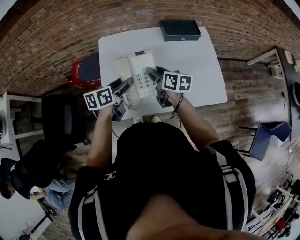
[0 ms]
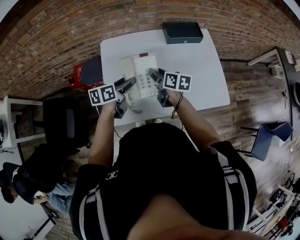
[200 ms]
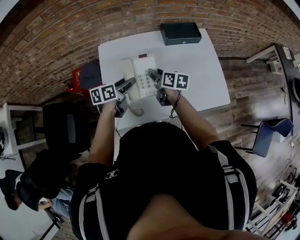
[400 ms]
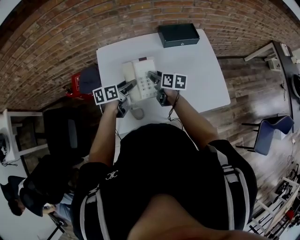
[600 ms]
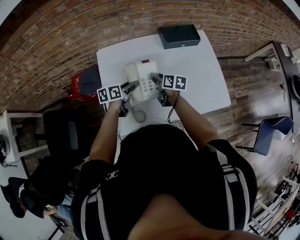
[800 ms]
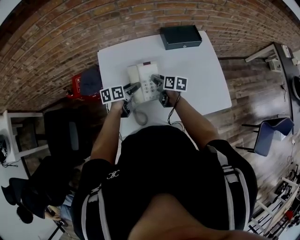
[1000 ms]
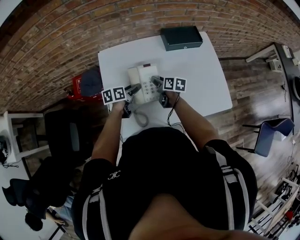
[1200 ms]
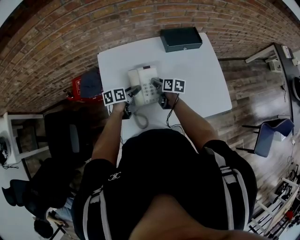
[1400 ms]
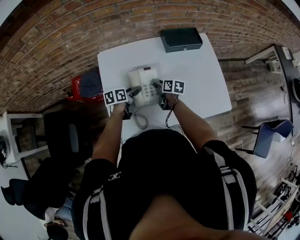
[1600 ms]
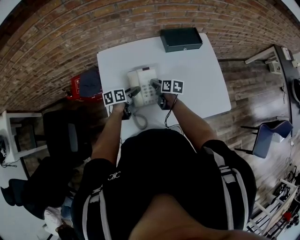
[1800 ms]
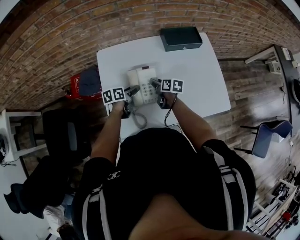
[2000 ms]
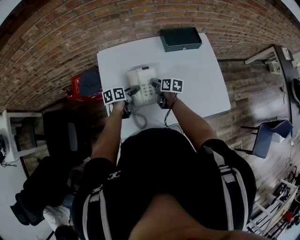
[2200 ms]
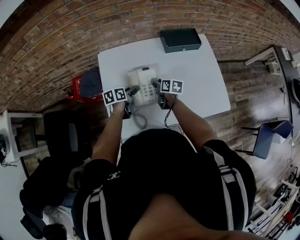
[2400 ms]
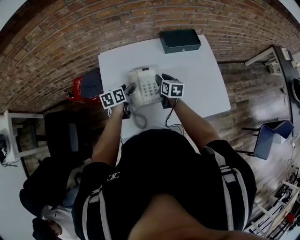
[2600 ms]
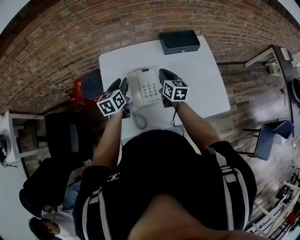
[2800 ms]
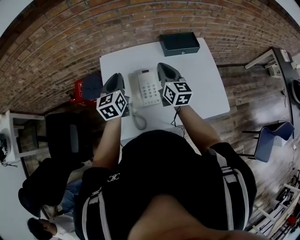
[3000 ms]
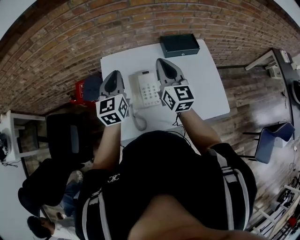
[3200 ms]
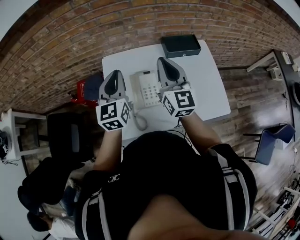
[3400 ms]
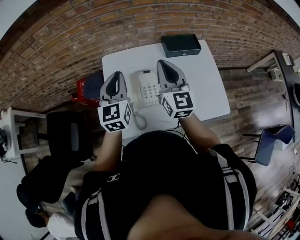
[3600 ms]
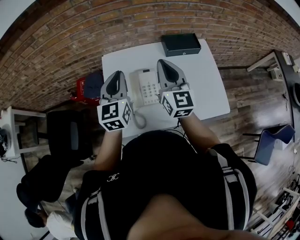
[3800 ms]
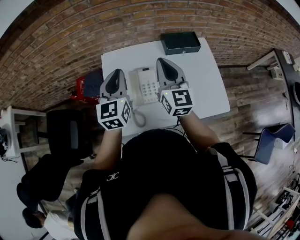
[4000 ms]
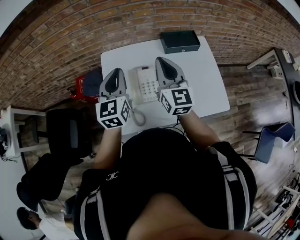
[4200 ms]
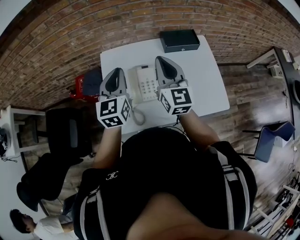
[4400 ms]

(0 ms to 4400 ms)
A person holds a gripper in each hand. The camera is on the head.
0 ms - 1400 ms: Both grippers move downward and forward, approximately 20 cm.
1400 ms - 3000 ms: The grippers both shift upward by about 20 cm. The right gripper changes its angle by about 50 degrees, and closes up; the left gripper changes its angle by roughly 50 degrees, and closes.
3000 ms - 4400 ms: Both grippers travel together upward and backward, approximately 10 cm.

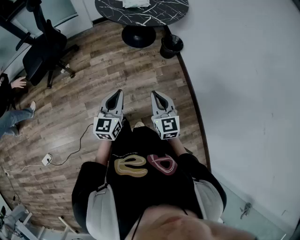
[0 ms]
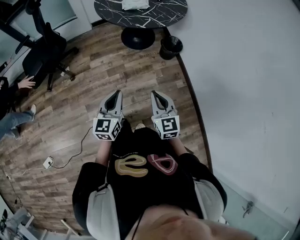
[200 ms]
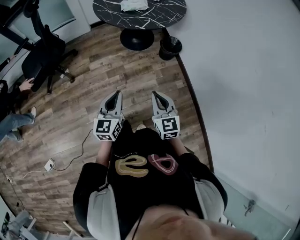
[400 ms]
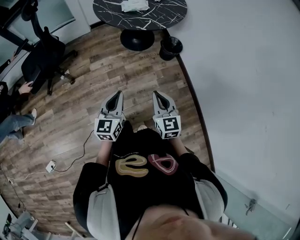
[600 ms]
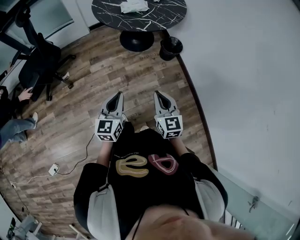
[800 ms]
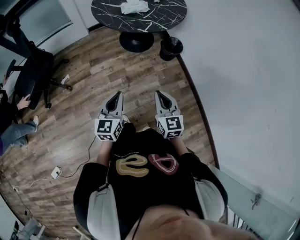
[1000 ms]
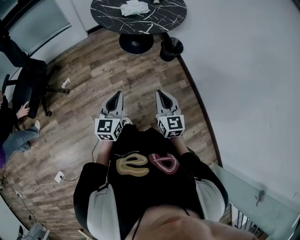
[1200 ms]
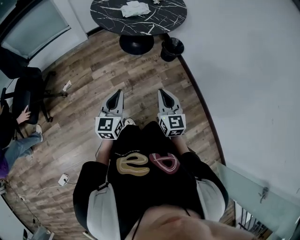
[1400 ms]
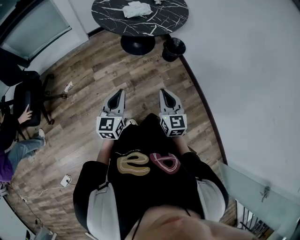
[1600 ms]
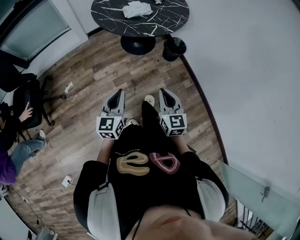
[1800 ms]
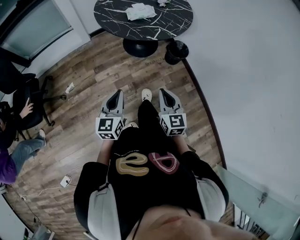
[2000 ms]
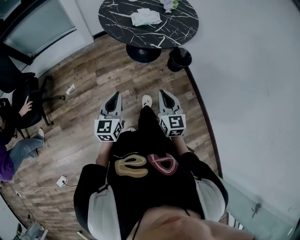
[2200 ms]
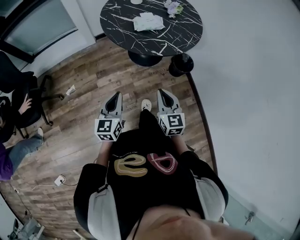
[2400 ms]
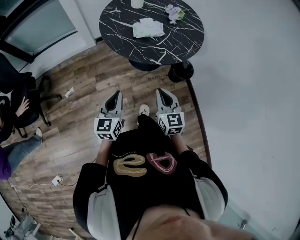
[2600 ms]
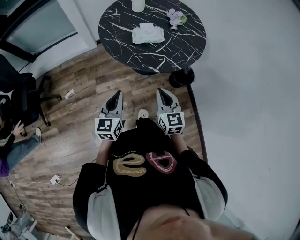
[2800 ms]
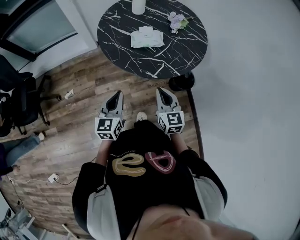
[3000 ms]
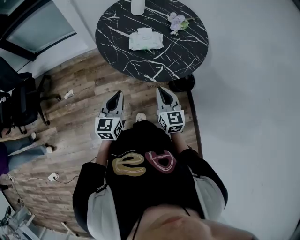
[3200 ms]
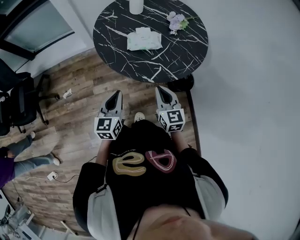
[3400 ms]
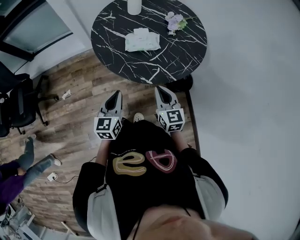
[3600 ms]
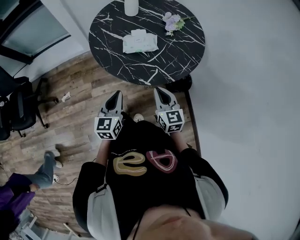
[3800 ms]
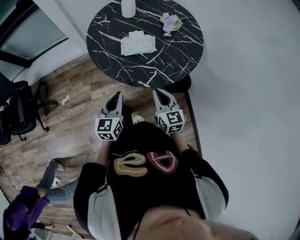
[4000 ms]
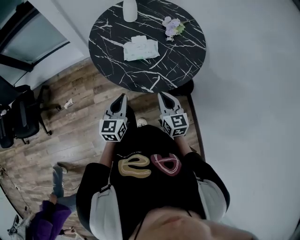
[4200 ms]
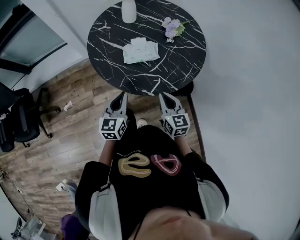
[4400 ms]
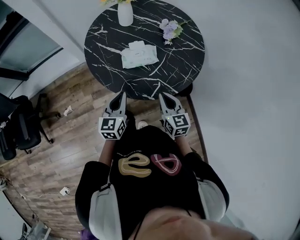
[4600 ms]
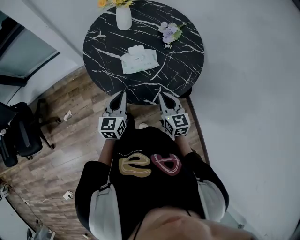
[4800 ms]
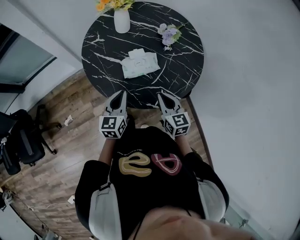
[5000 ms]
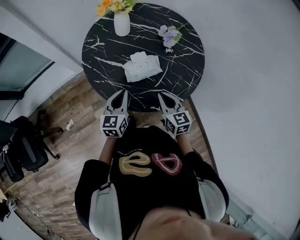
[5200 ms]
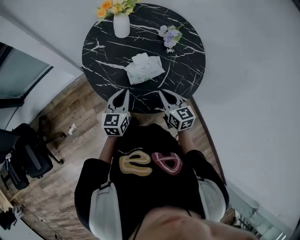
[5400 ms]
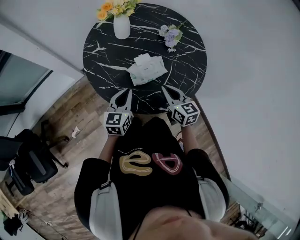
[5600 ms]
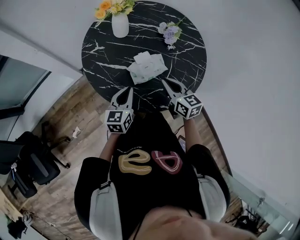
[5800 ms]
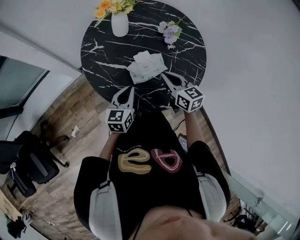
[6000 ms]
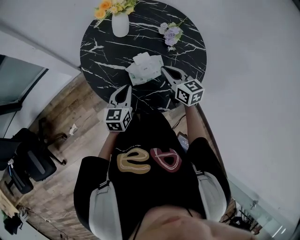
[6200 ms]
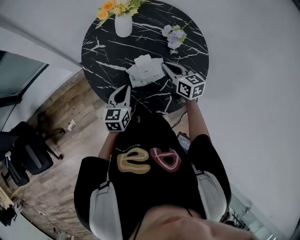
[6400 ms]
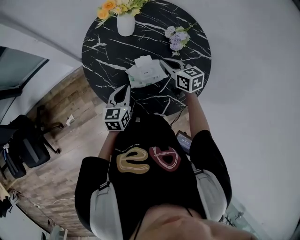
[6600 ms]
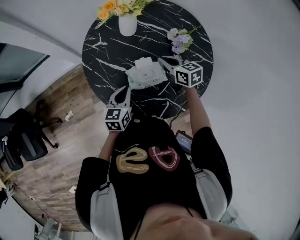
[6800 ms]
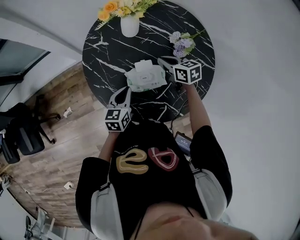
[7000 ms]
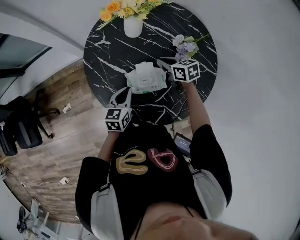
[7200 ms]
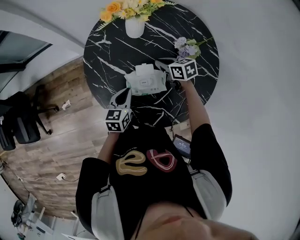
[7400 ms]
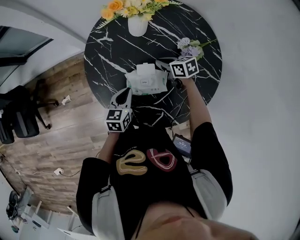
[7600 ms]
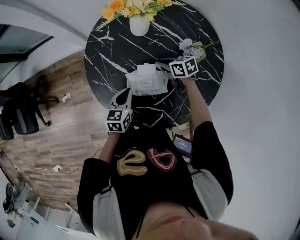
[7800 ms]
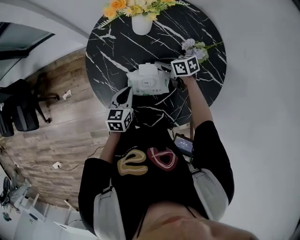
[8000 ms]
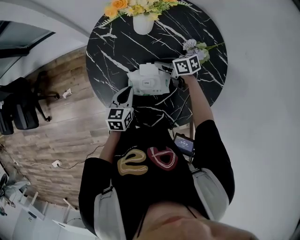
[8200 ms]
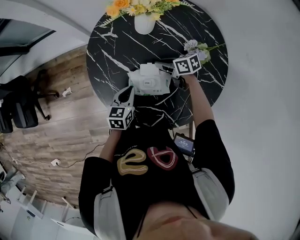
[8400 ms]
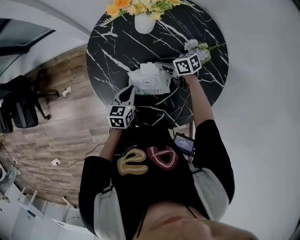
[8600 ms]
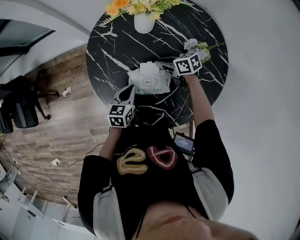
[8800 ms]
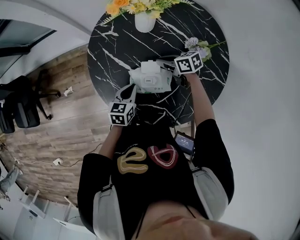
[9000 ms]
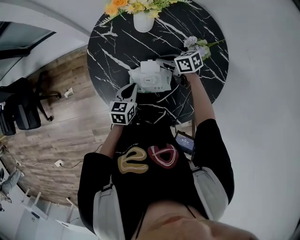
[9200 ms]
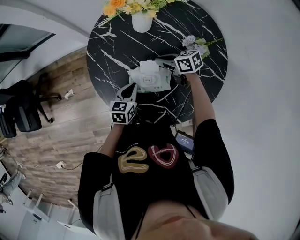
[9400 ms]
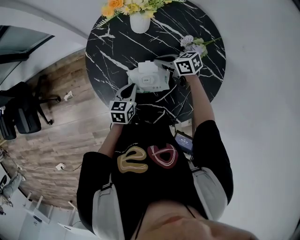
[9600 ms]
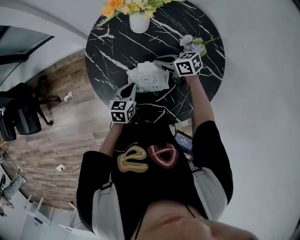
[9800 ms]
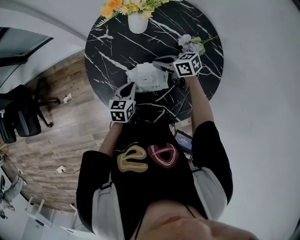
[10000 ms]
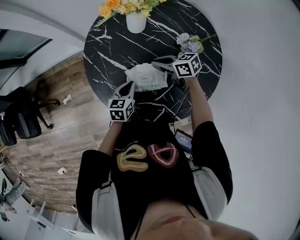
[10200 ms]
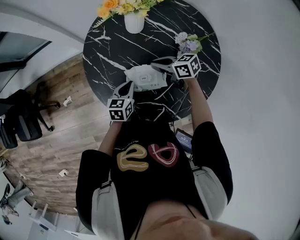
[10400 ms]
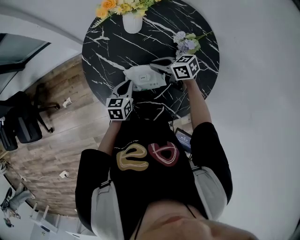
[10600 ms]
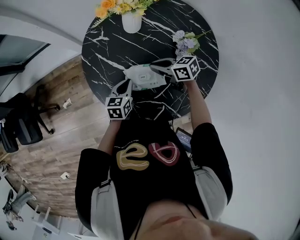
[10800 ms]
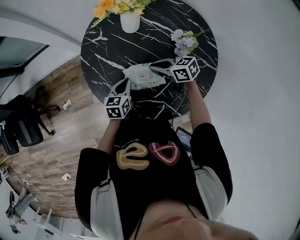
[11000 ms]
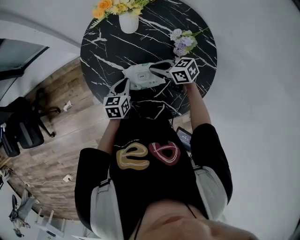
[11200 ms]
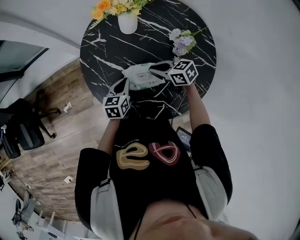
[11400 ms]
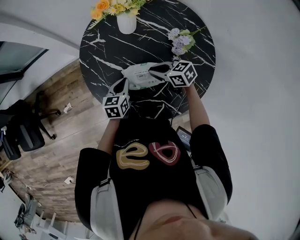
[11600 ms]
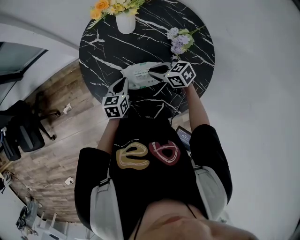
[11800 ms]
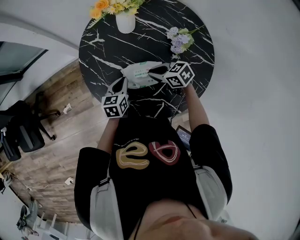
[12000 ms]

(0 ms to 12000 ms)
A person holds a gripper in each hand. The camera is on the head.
0 ms - 1600 ms: The grippers both shift to the left and forward by approximately 15 cm.
1600 ms - 3000 ms: The grippers both shift forward by roughly 30 cm.
3000 ms - 4400 ms: The two grippers go about 10 cm forward.
4400 ms - 6000 ms: The right gripper goes some 20 cm forward and to the left. The left gripper is displaced forward by roughly 15 cm, and turns by roughly 20 degrees.
6000 ms - 7600 ms: The right gripper changes place by some 25 cm, and turns by some 40 degrees. The left gripper shifts by approximately 10 cm, and swivels some 30 degrees.
7600 ms - 9000 ms: The grippers stay close to where they were, moving slightly.
9000 ms - 10400 ms: The right gripper travels upward by roughly 5 cm.
10400 ms - 12000 ms: The right gripper travels backward by roughly 5 cm.

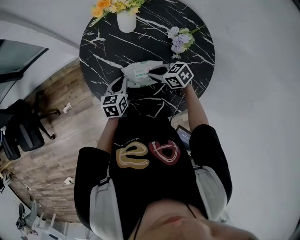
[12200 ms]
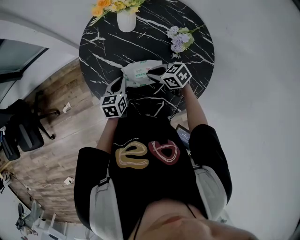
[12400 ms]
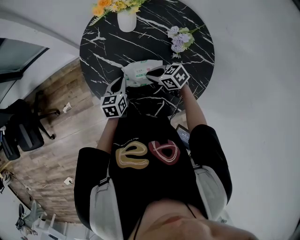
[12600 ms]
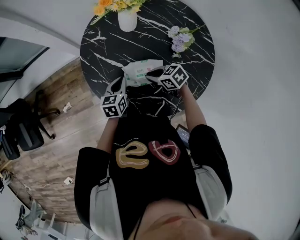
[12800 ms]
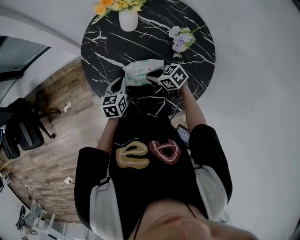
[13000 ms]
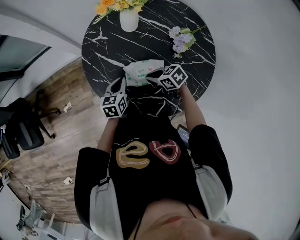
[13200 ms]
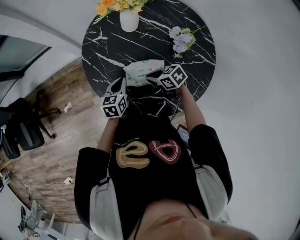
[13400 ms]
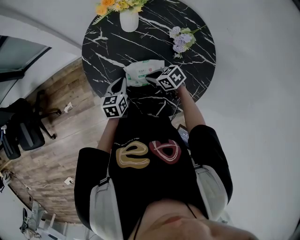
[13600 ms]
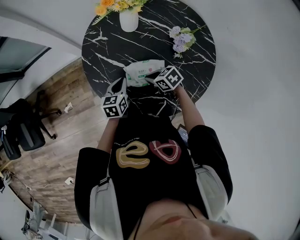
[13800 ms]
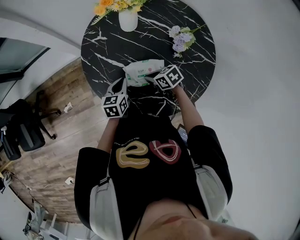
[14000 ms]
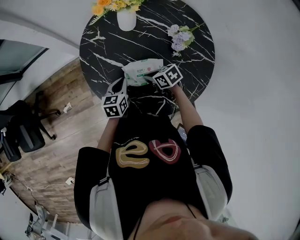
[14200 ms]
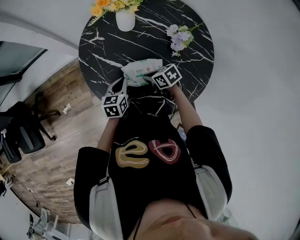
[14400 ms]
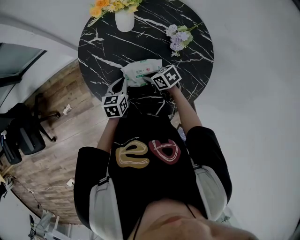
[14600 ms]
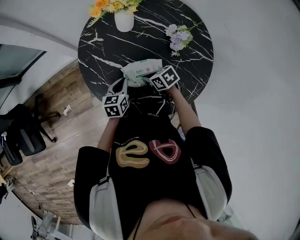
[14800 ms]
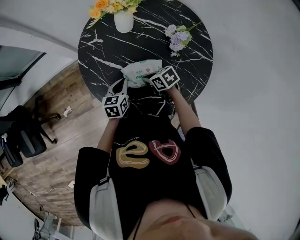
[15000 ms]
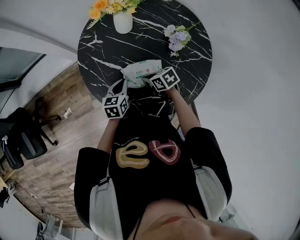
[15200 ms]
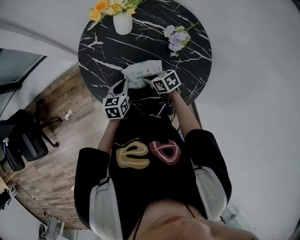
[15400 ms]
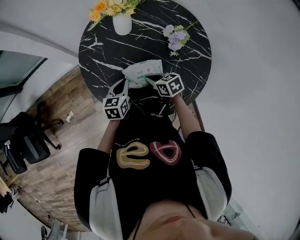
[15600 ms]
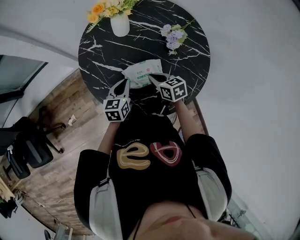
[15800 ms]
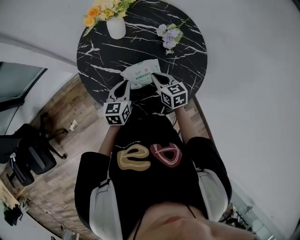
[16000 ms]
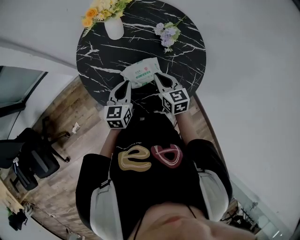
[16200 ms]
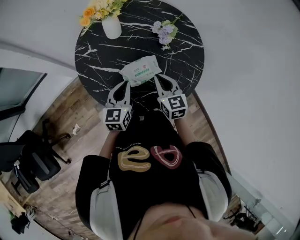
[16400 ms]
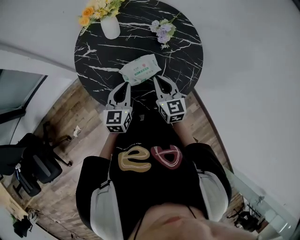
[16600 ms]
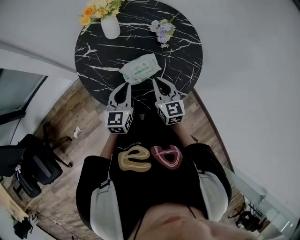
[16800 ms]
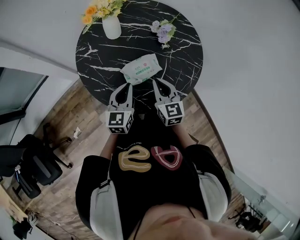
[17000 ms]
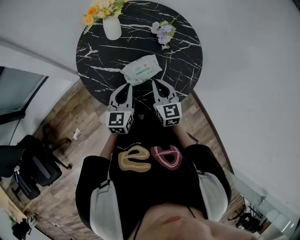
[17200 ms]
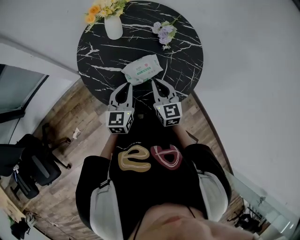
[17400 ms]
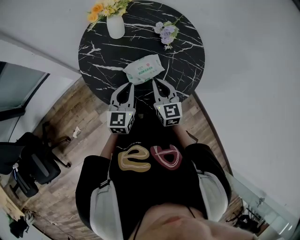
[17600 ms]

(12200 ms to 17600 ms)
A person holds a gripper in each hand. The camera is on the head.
12200 ms - 15000 ms: The grippers move only a little.
15000 ms - 16200 ms: The grippers both shift upward by roughly 10 cm. The left gripper changes its angle by roughly 20 degrees; the right gripper turns by some 50 degrees.
16200 ms - 17600 ms: The right gripper moves backward, approximately 5 cm. Meanwhile the left gripper ends up roughly 5 cm from where it was.

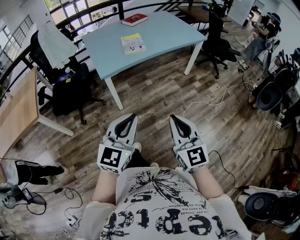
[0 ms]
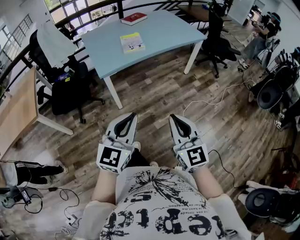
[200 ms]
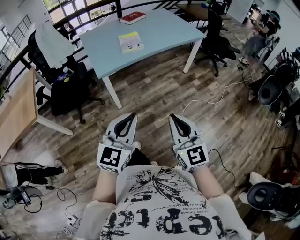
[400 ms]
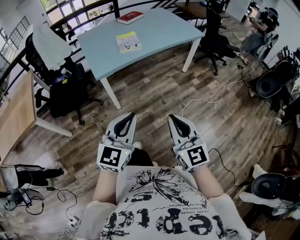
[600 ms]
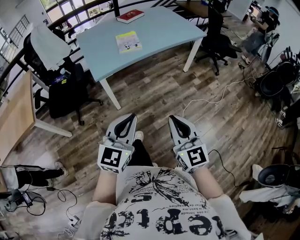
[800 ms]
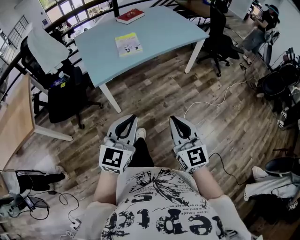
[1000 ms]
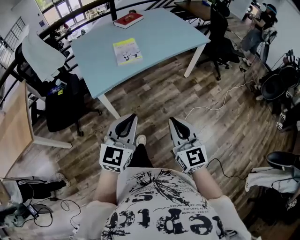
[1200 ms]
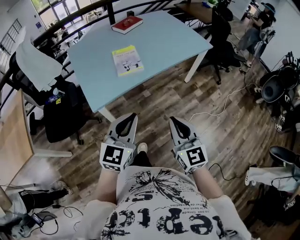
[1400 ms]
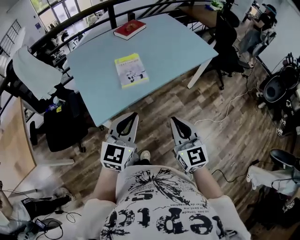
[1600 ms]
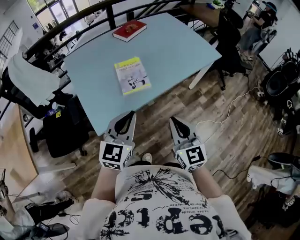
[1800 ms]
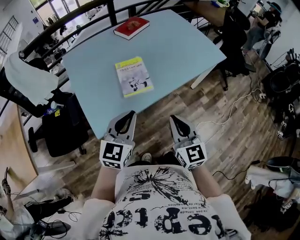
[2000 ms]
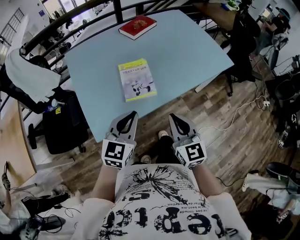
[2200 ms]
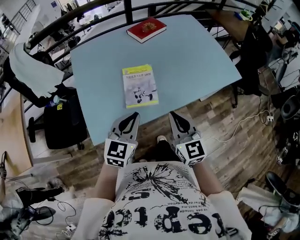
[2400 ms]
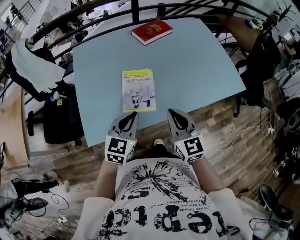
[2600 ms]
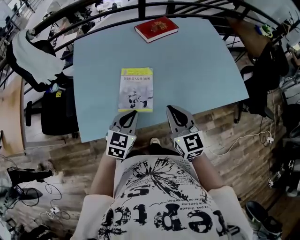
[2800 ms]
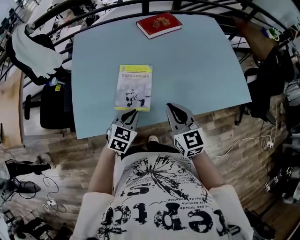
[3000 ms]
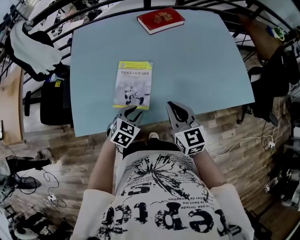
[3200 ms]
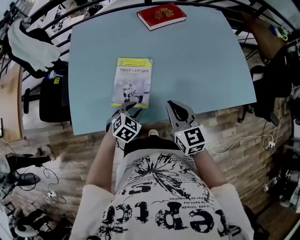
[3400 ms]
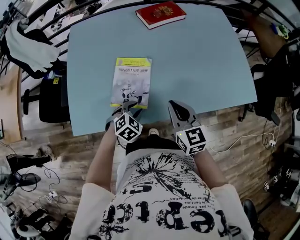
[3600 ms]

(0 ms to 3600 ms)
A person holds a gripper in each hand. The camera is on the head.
0 ms - 1800 ms: Both grippers are carried forward, some 50 cm.
1800 ms - 3600 ms: The right gripper travels forward by approximately 30 cm, and turns by some 30 degrees, while the left gripper travels downward, forward and to the right by some 40 cm, angles its fingers downward, by some 50 degrees, and opens.
